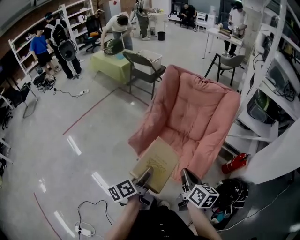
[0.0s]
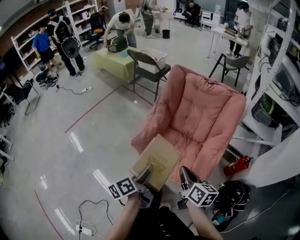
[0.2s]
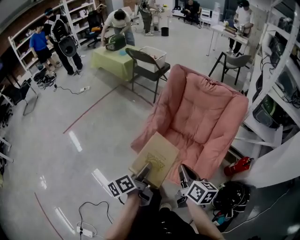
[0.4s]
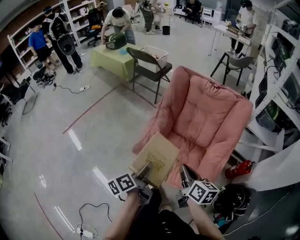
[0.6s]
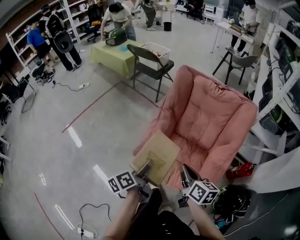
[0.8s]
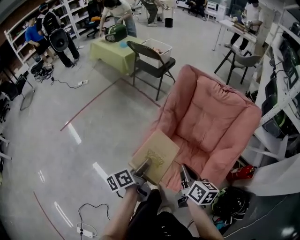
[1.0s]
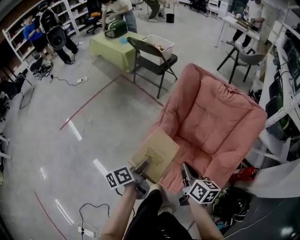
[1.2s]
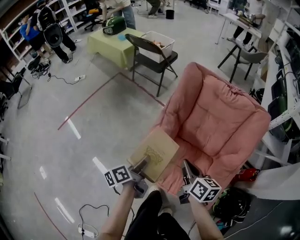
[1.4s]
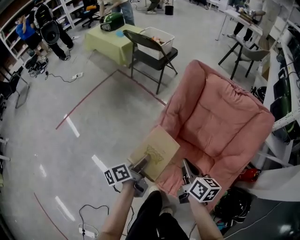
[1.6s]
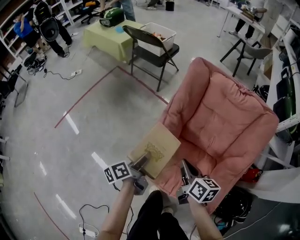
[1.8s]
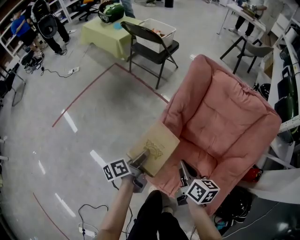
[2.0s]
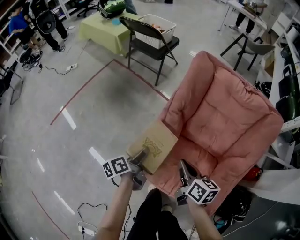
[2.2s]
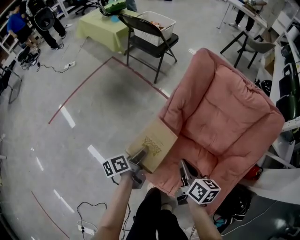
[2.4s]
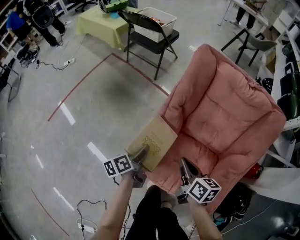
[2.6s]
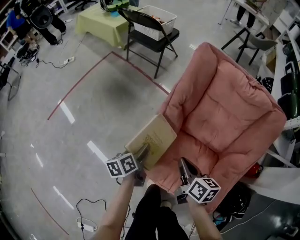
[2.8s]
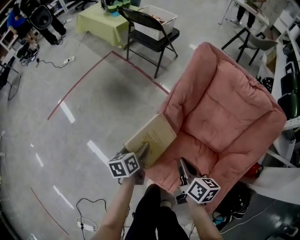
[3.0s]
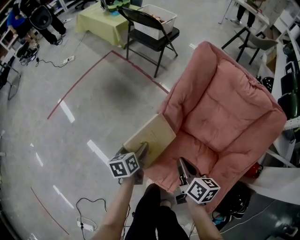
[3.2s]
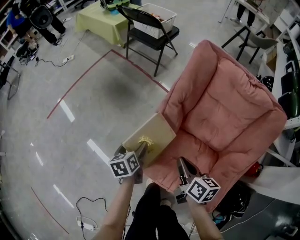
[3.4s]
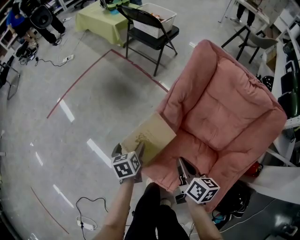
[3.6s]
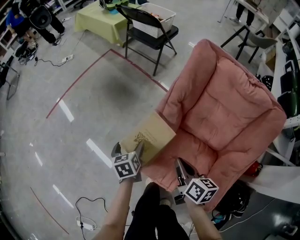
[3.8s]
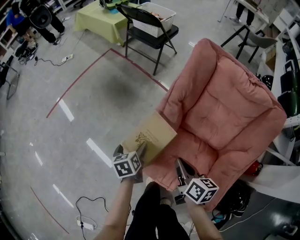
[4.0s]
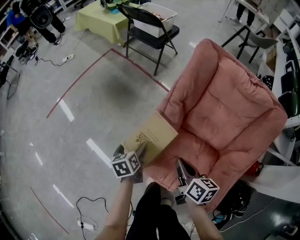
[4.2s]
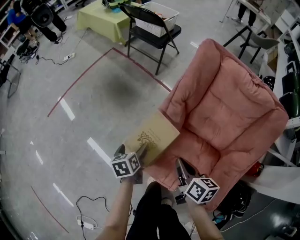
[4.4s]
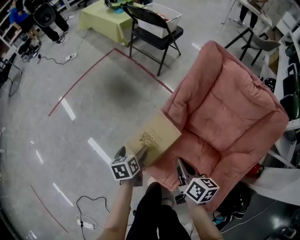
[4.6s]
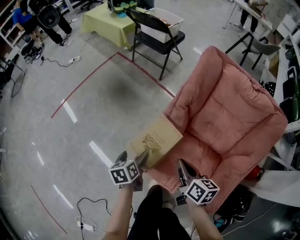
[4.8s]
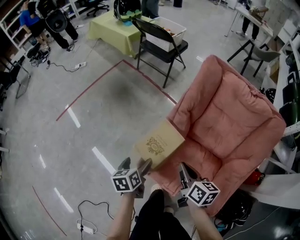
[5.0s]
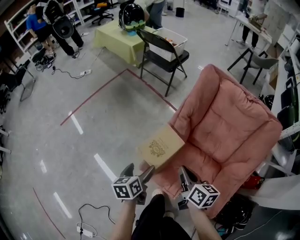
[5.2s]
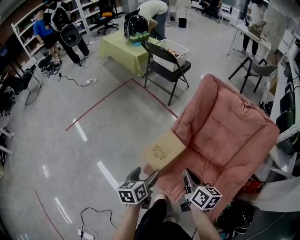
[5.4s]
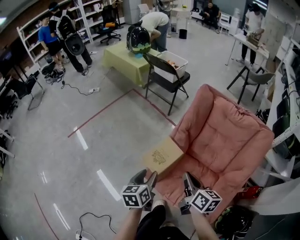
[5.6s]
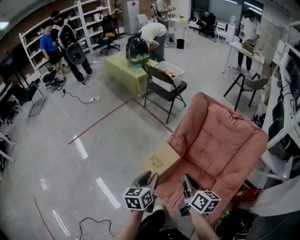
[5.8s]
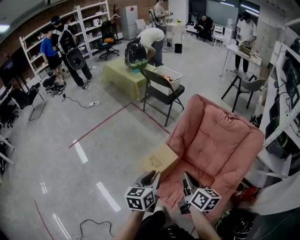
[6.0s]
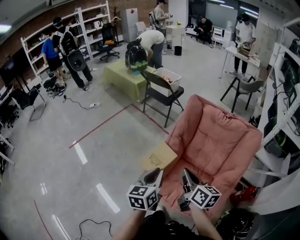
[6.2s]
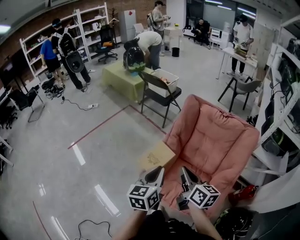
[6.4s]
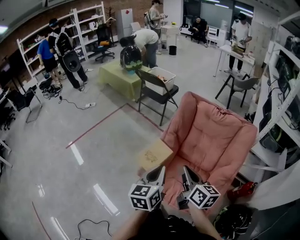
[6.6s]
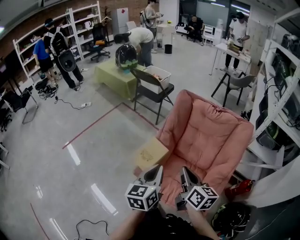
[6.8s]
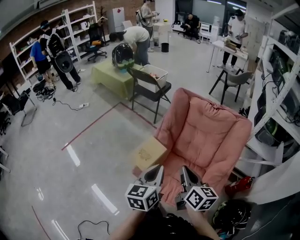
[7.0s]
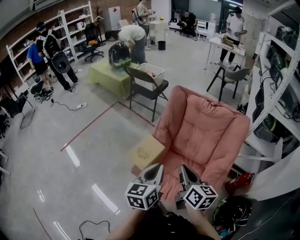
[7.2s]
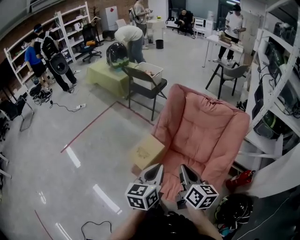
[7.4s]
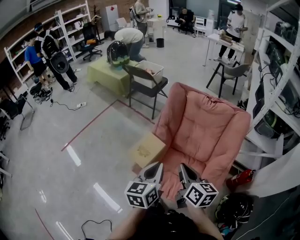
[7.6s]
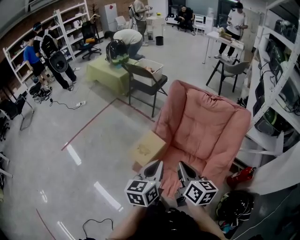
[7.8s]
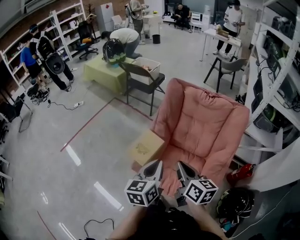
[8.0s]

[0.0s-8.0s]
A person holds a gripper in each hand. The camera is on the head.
0.0s to 1.6s: Both grippers move forward, some 30 cm.
1.6s to 3.2s: The left gripper heads downward and forward, covering roughly 15 cm, and turns by approximately 30 degrees. The right gripper moves downward, some 10 cm.
3.2s to 4.8s: The left gripper ends up about 5 cm from where it was.
4.8s to 6.4s: Both grippers move upward and backward, about 30 cm. The right gripper rotates some 20 degrees, while the left gripper tips its fingers upward by roughly 30 degrees, and closes.
6.4s to 8.0s: The grippers move only a little.

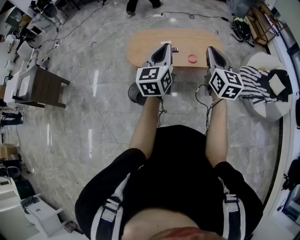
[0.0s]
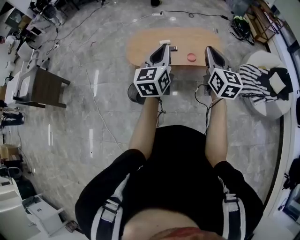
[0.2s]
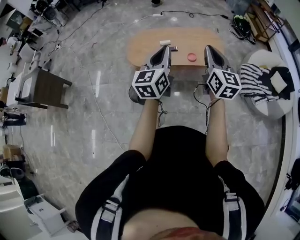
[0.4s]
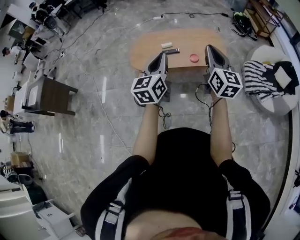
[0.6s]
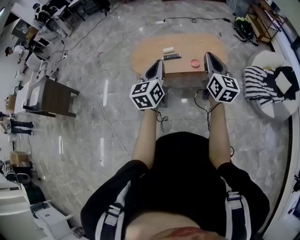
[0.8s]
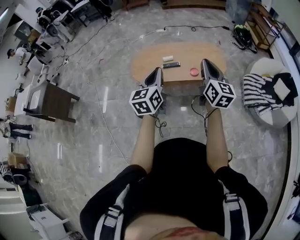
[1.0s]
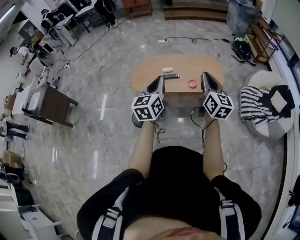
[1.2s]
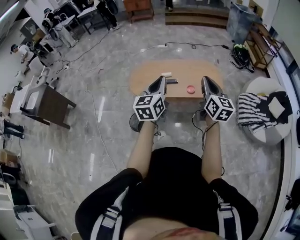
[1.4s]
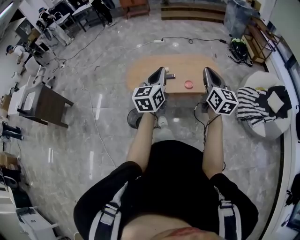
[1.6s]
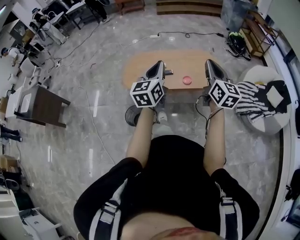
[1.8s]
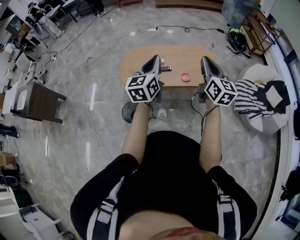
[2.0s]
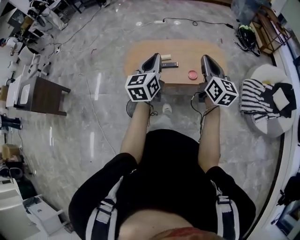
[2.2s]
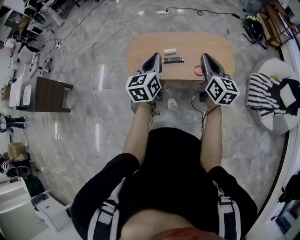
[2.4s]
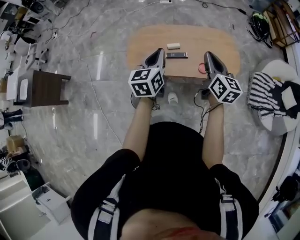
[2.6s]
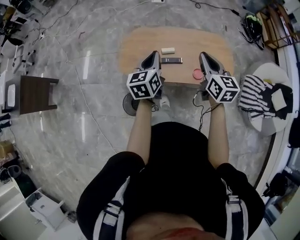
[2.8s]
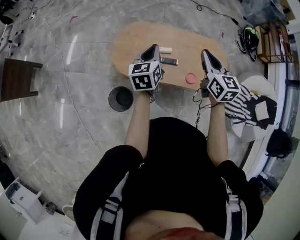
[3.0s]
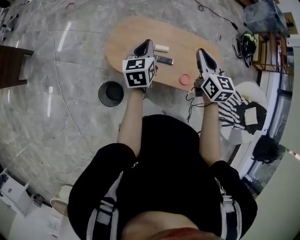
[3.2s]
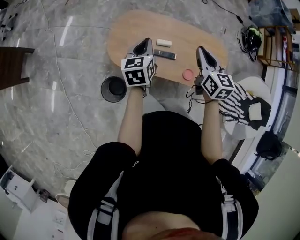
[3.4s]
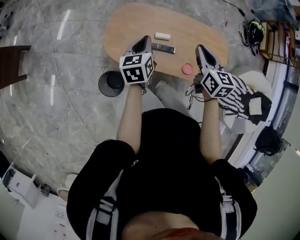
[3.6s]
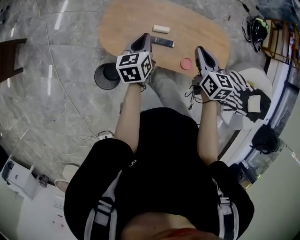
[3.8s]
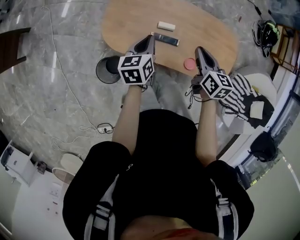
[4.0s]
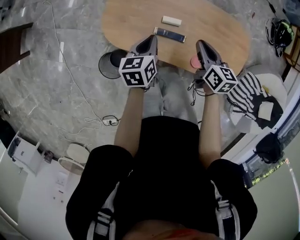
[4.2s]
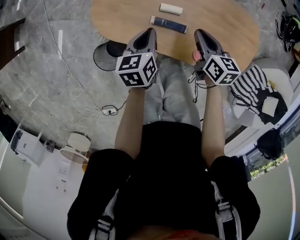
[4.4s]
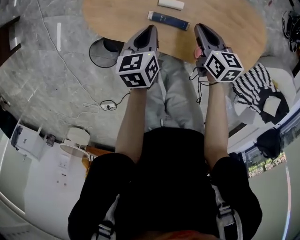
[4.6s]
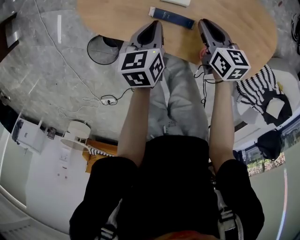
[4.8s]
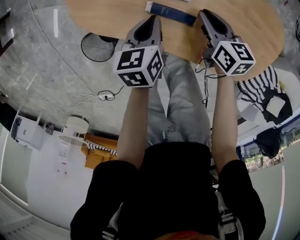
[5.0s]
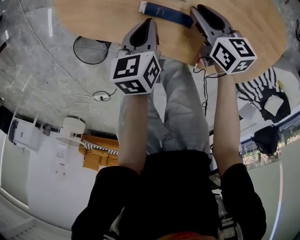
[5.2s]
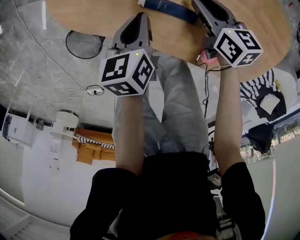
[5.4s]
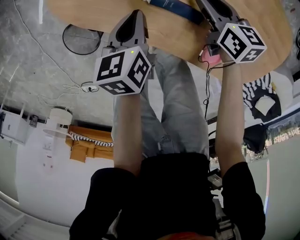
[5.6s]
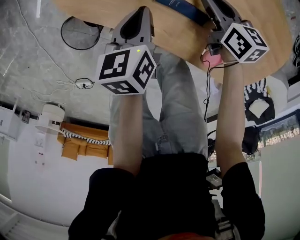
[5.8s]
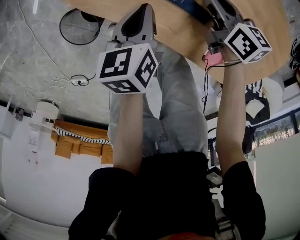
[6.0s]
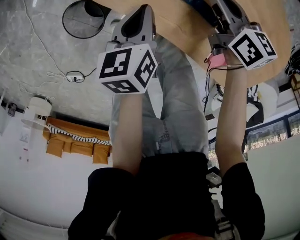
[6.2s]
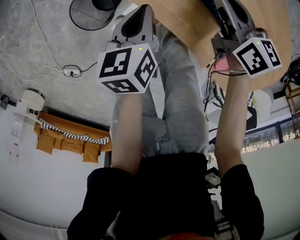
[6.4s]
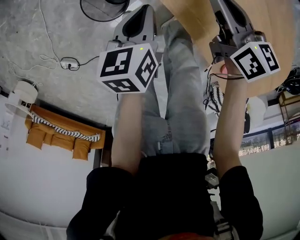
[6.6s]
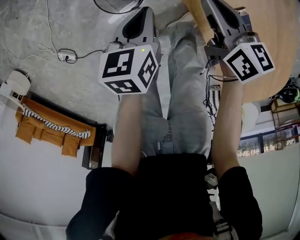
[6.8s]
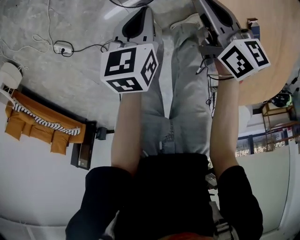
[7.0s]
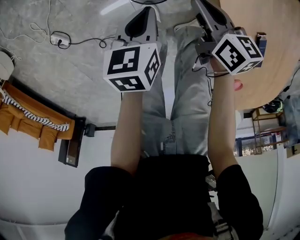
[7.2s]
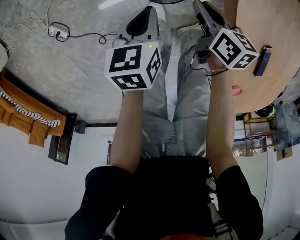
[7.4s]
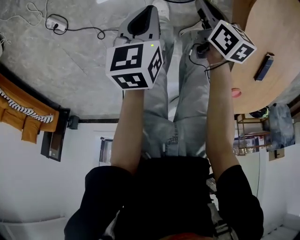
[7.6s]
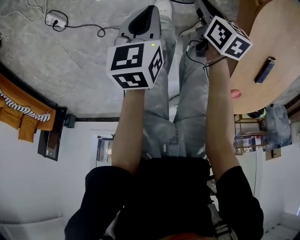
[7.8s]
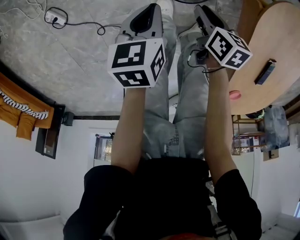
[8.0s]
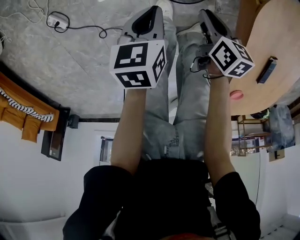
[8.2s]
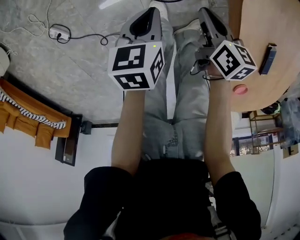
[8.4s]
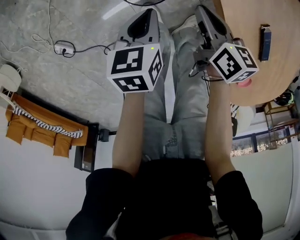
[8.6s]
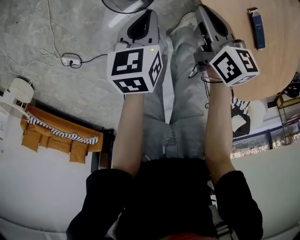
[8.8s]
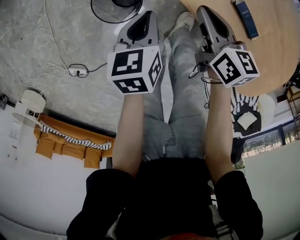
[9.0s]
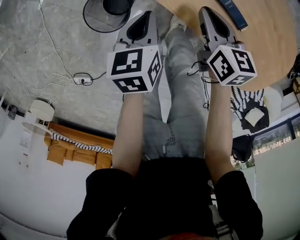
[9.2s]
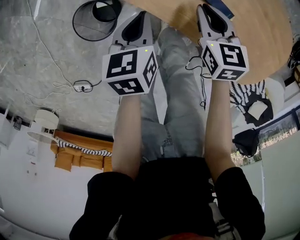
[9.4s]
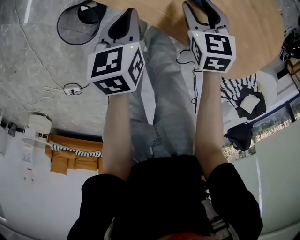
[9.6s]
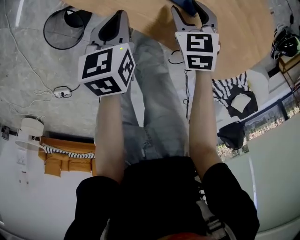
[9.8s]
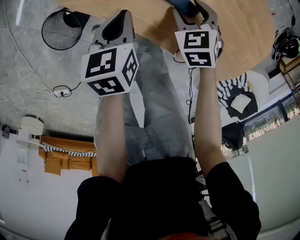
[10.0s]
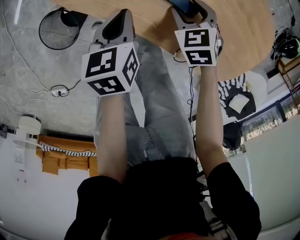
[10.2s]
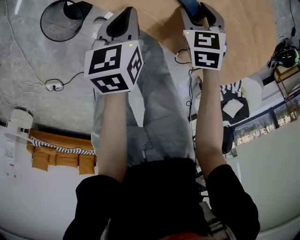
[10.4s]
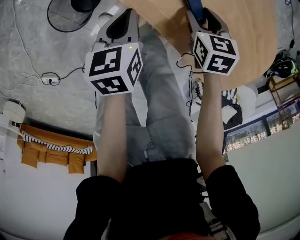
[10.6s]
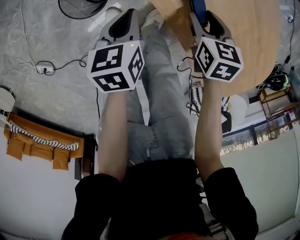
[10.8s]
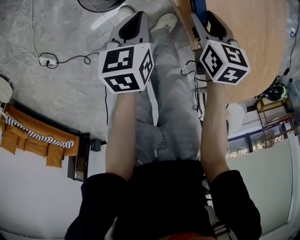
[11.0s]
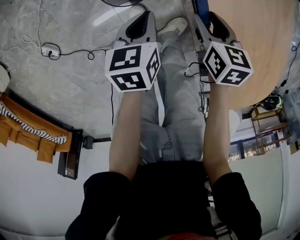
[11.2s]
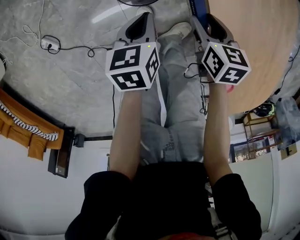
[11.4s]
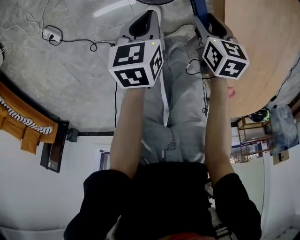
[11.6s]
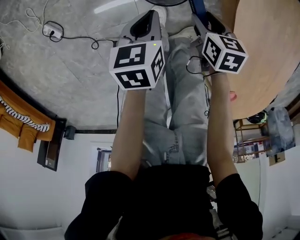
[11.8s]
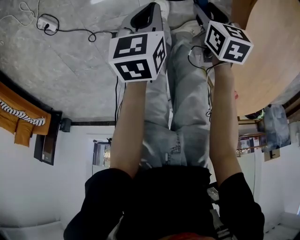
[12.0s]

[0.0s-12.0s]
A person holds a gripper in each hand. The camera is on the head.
0.0s to 1.6s: The left gripper moves some 5 cm, while the right gripper heads to the right, covering approximately 5 cm.
1.6s to 3.0s: The left gripper heads forward, downward and to the left, covering some 40 cm, and rotates approximately 20 degrees. The right gripper moves forward and to the left, approximately 40 cm, and swivels about 30 degrees.
3.0s to 4.4s: The two grippers go about 30 cm downward. The left gripper swivels about 20 degrees; the right gripper changes its angle by about 30 degrees.
4.4s to 6.0s: The left gripper moves downward, about 20 cm, and changes its angle by about 20 degrees; the right gripper is displaced downward and to the left by about 25 cm, and rotates about 20 degrees.
6.0s to 7.6s: Both grippers are carried roughly 50 cm. The left gripper swivels roughly 40 degrees. The right gripper turns by roughly 40 degrees.
7.6s to 9.0s: The right gripper moves roughly 25 cm, and changes its angle by approximately 30 degrees. Meanwhile the left gripper shifts by roughly 25 cm, and swivels some 30 degrees.
9.0s to 10.4s: The two grippers go some 20 cm to the right. The right gripper turns by approximately 50 degrees, and opens.
10.4s to 12.0s: The left gripper moves roughly 40 cm, and turns by some 40 degrees. Meanwhile the right gripper changes place by roughly 40 cm, and swivels some 30 degrees.

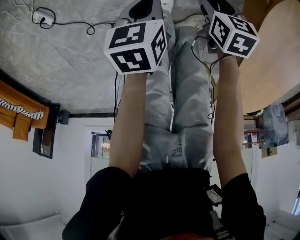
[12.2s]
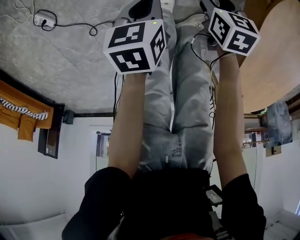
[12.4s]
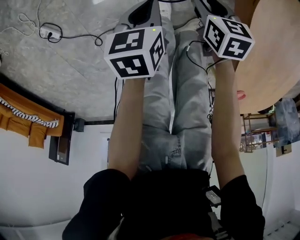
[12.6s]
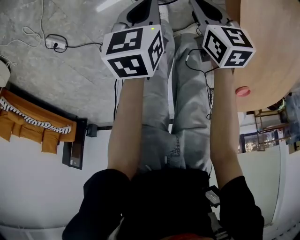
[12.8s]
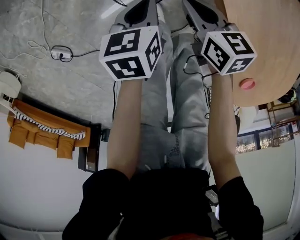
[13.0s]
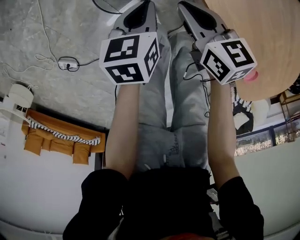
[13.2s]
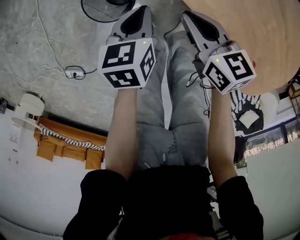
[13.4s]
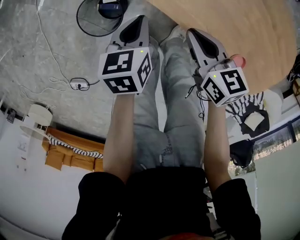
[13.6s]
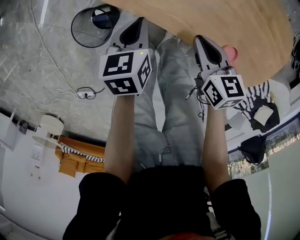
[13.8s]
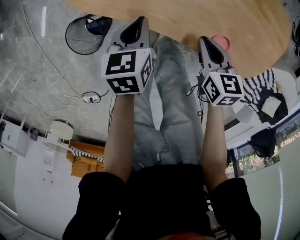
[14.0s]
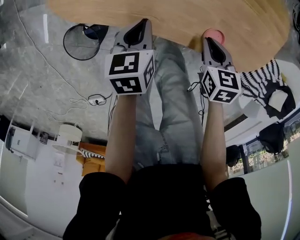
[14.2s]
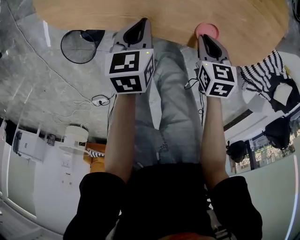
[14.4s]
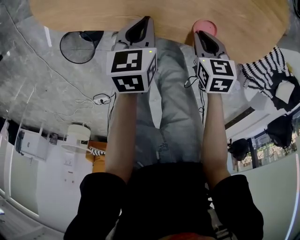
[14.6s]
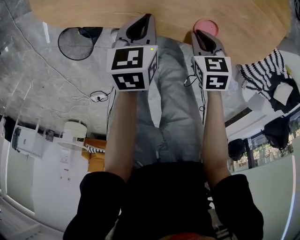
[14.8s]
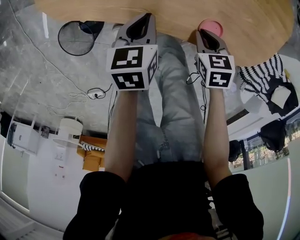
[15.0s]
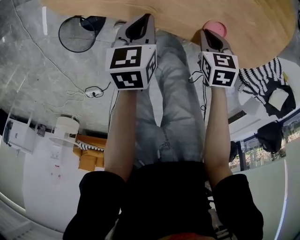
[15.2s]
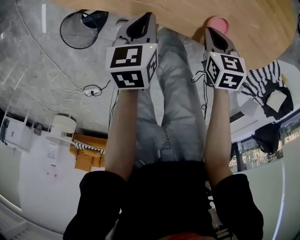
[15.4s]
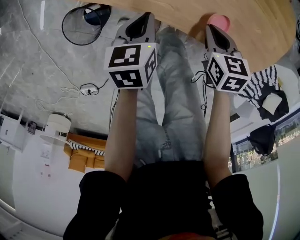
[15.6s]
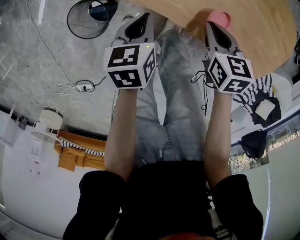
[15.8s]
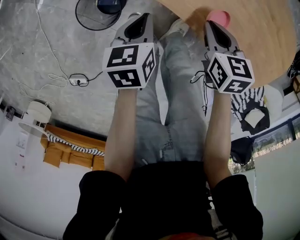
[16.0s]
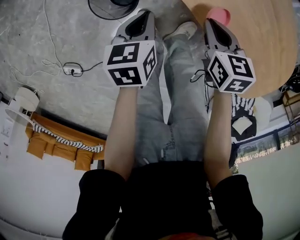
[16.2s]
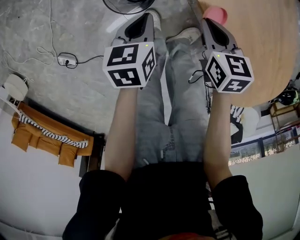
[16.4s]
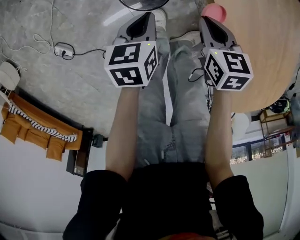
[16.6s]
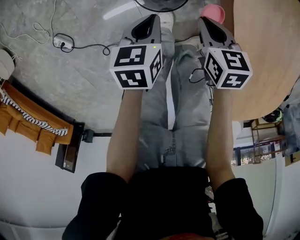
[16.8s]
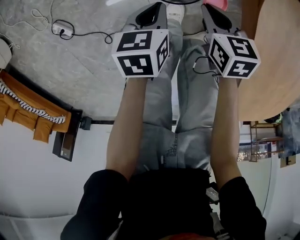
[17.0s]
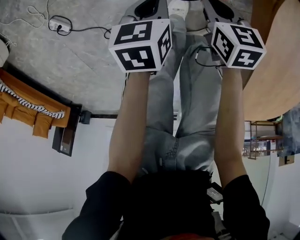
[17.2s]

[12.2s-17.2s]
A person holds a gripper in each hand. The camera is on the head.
12.2s to 13.8s: The left gripper ends up roughly 40 cm from where it was, and twists roughly 50 degrees clockwise, seen from behind. Meanwhile the right gripper shifts by roughly 40 cm, rotates approximately 50 degrees, and closes.
13.8s to 15.6s: The grippers both shift to the right by approximately 10 cm.
15.6s to 17.2s: The two grippers travel together, approximately 40 cm. The left gripper rolls counterclockwise, seen from behind, by roughly 40 degrees, while the right gripper changes its angle by roughly 50 degrees.
